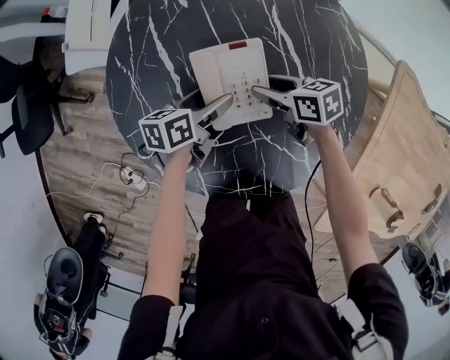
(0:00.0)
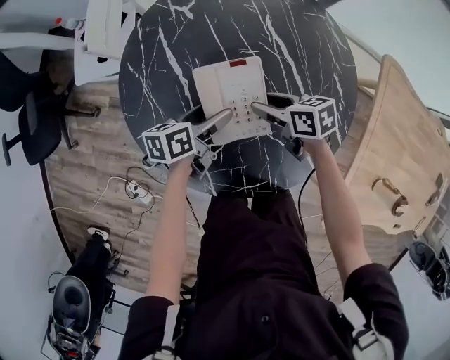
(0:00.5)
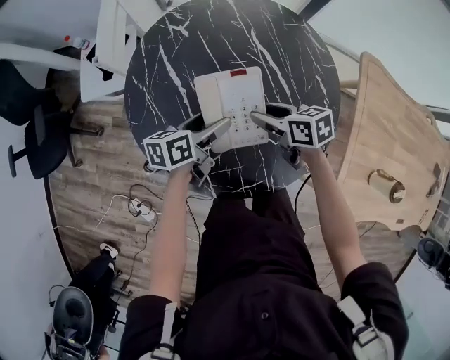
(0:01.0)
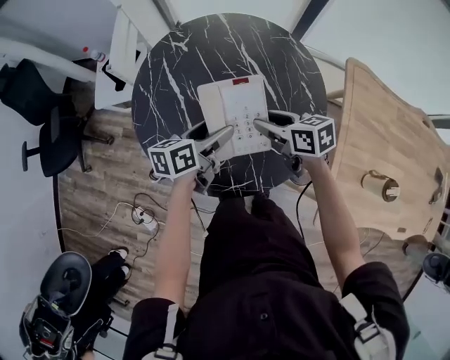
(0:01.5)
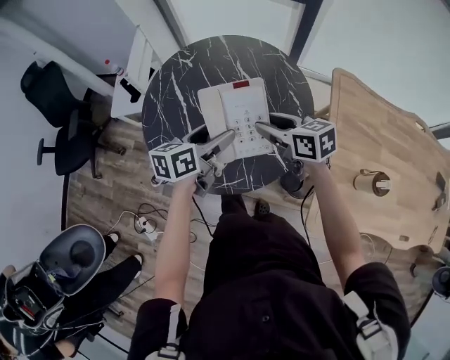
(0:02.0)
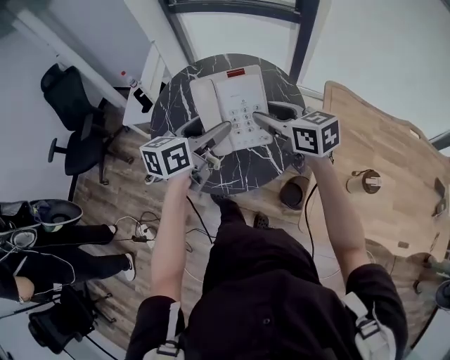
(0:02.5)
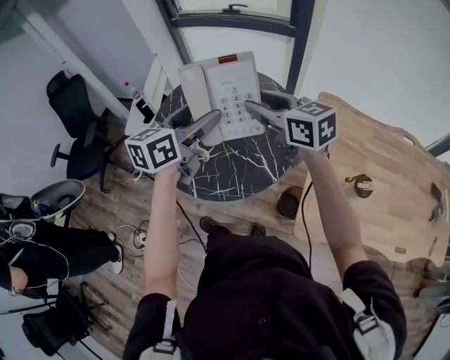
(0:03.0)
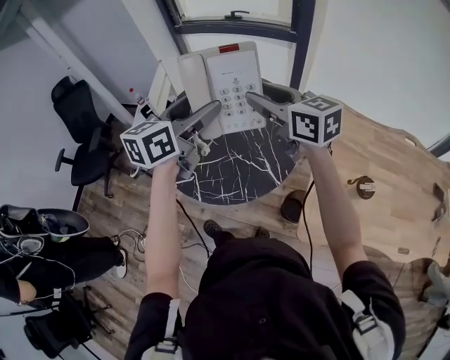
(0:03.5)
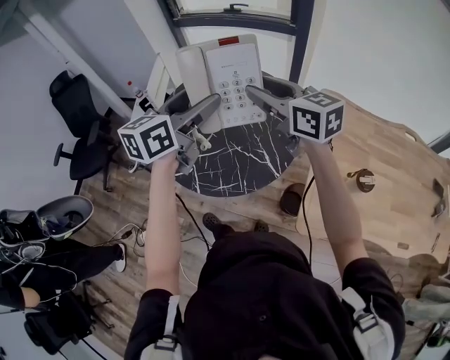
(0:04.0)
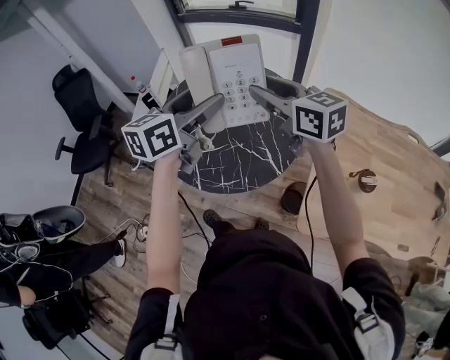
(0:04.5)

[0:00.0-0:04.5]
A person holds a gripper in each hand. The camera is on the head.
0:00.0 to 0:02.0: Both grippers travel together upward and backward, some 30 cm. The right gripper changes its angle by about 30 degrees. Meanwhile the left gripper turns by approximately 20 degrees.
0:02.0 to 0:04.5: Both grippers move upward, some 20 cm. The right gripper swivels about 30 degrees. Meanwhile the left gripper swivels approximately 20 degrees.

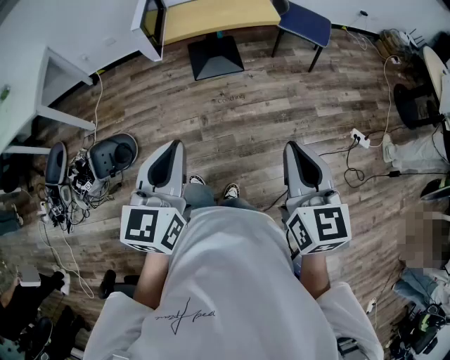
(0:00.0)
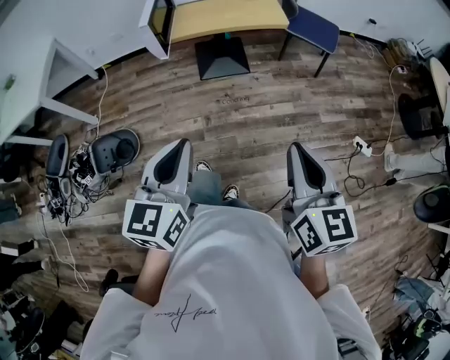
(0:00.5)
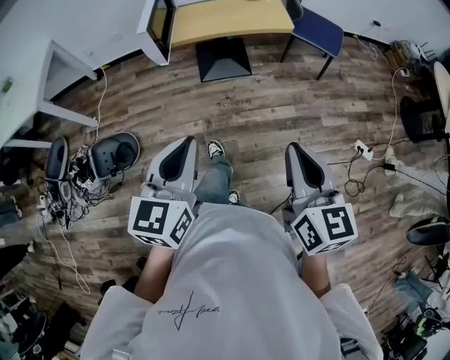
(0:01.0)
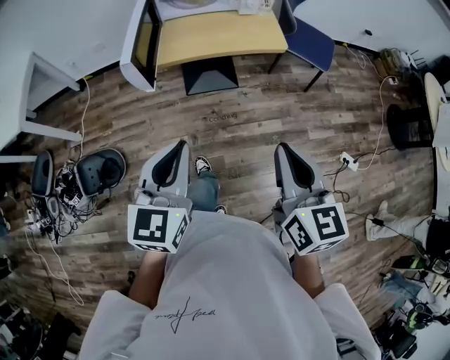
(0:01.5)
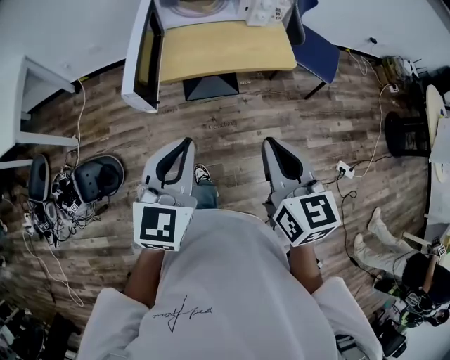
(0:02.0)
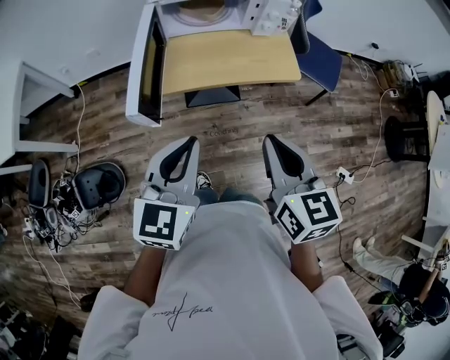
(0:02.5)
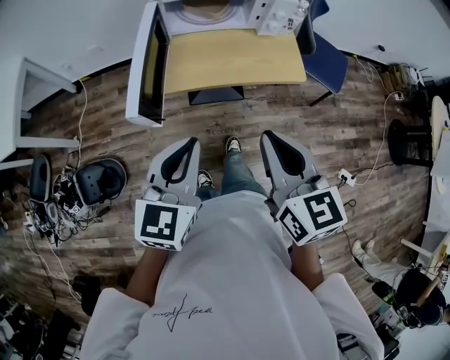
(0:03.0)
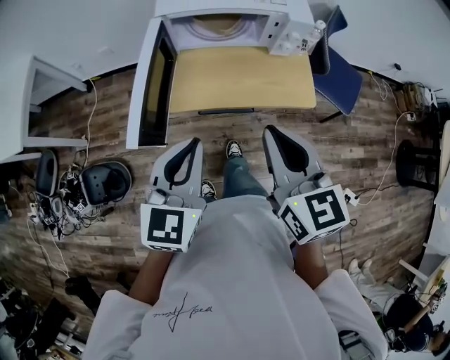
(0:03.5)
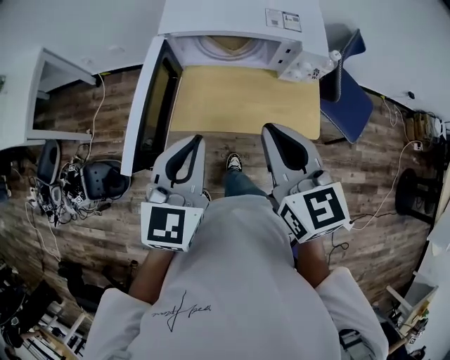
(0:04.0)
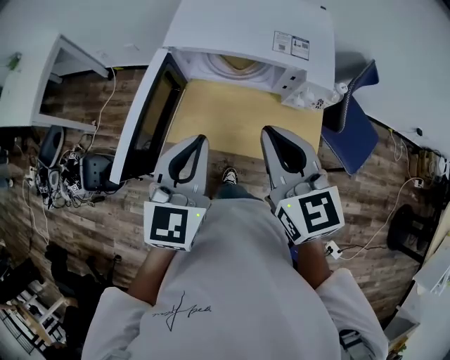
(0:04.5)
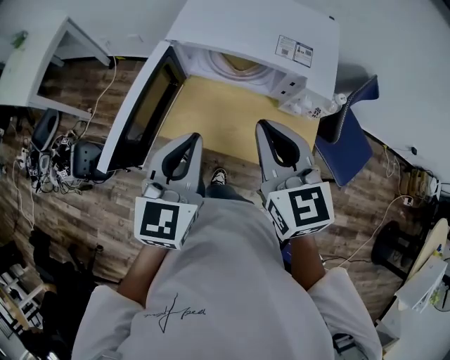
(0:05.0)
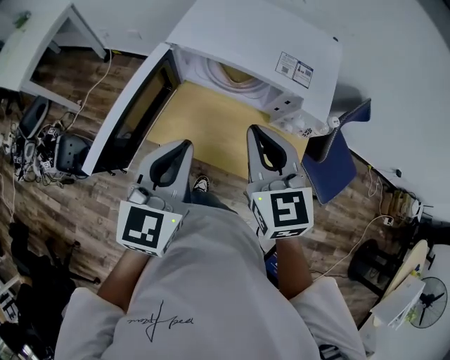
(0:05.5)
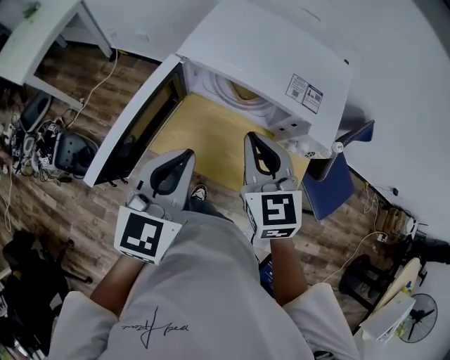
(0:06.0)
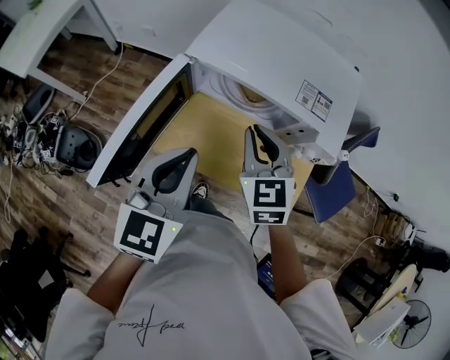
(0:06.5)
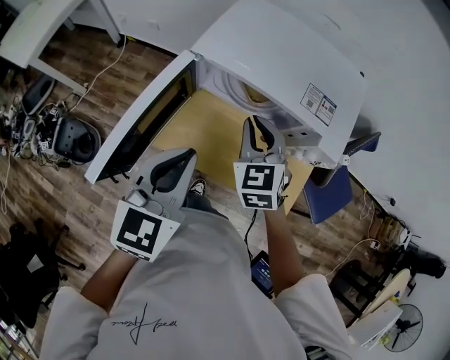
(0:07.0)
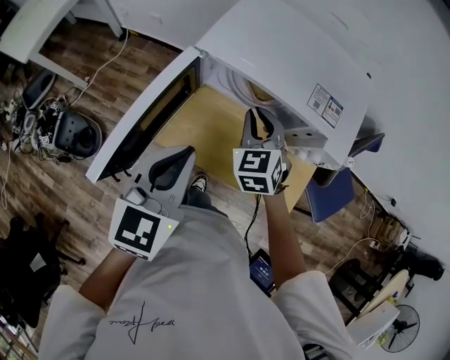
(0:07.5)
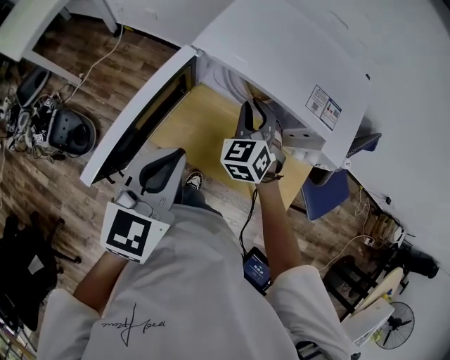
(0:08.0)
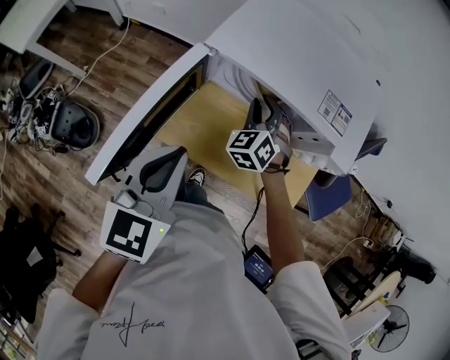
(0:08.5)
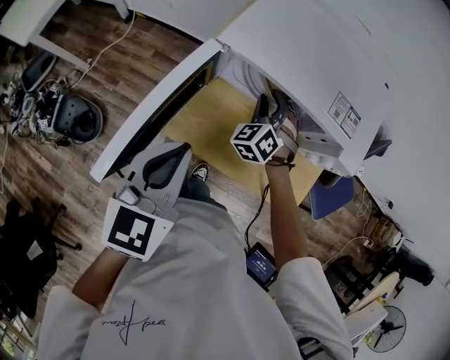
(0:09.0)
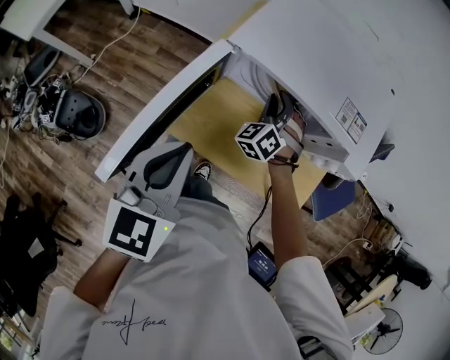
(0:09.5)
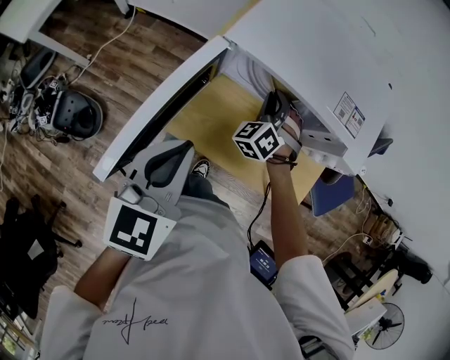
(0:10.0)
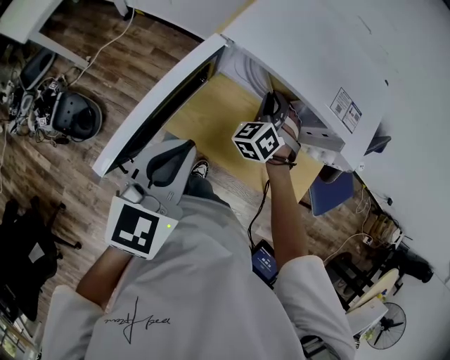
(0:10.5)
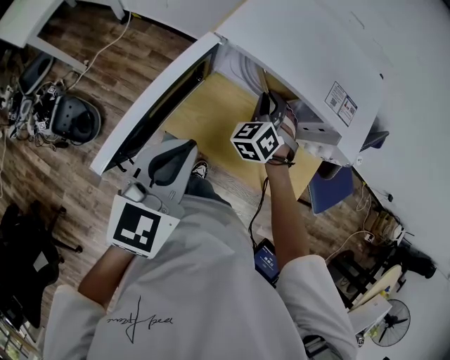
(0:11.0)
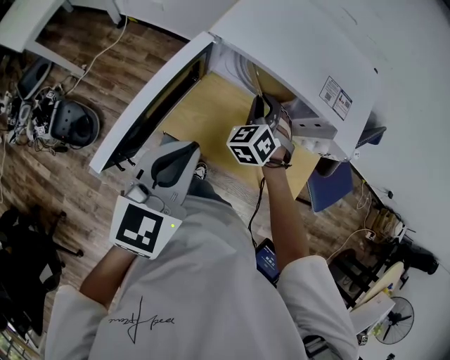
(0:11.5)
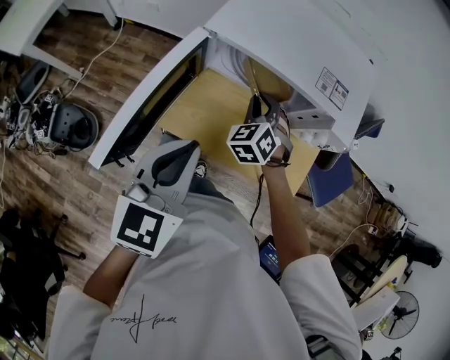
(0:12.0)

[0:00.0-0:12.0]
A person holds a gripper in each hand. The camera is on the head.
0:00.0 to 0:02.0: The grippers both shift forward by roughly 30 cm.
0:02.0 to 0:04.0: The two grippers go about 25 cm forward.
0:04.0 to 0:06.0: The left gripper is displaced forward by roughly 10 cm, while the right gripper heads forward and downward, covering roughly 15 cm, and rotates about 20 degrees.
0:06.0 to 0:08.0: The right gripper heads downward and forward, covering about 15 cm, and swivels roughly 30 degrees.
0:08.0 to 0:10.0: The right gripper shifts approximately 5 cm downward, and swivels approximately 20 degrees.
0:10.0 to 0:12.0: The right gripper shifts roughly 5 cm backward. The left gripper ends up about 5 cm from where it was.

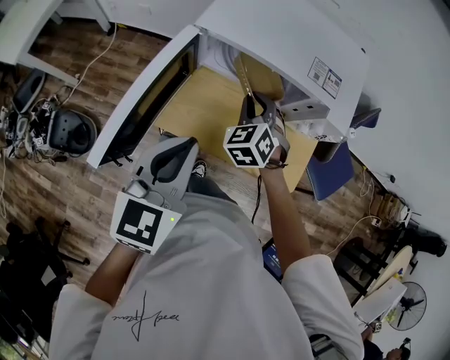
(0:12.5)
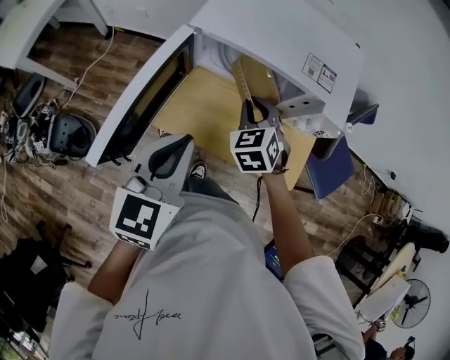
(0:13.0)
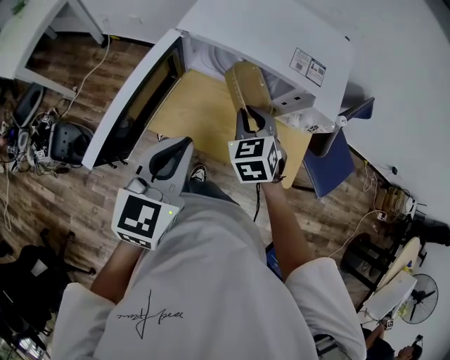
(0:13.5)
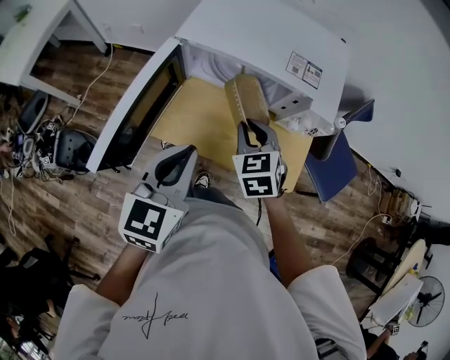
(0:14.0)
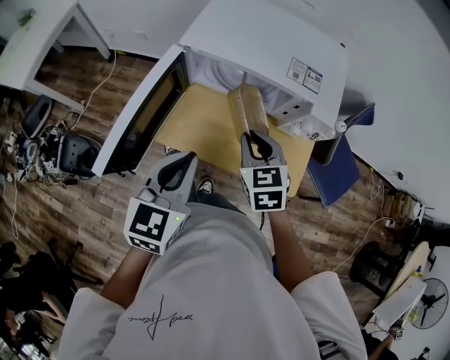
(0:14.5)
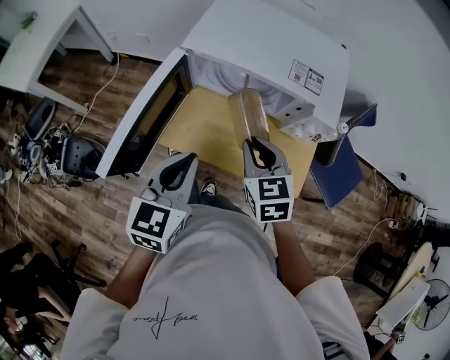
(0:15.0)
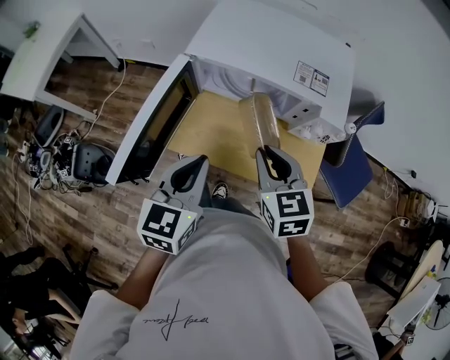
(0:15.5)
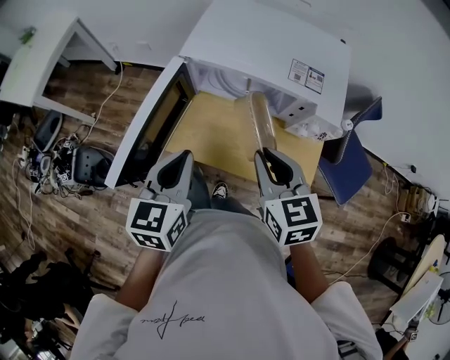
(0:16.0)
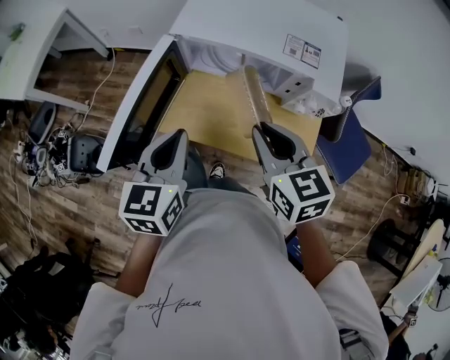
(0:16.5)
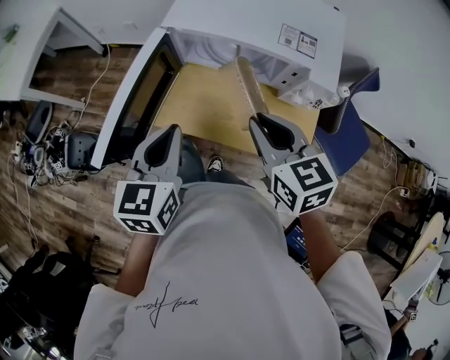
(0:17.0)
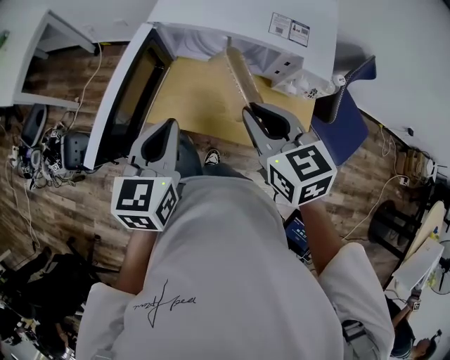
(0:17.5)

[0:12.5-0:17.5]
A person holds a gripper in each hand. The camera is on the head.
0:12.5 to 0:15.0: The right gripper goes approximately 10 cm backward and upward, and turns by roughly 30 degrees.
0:15.0 to 0:17.5: The right gripper is displaced upward by approximately 5 cm.

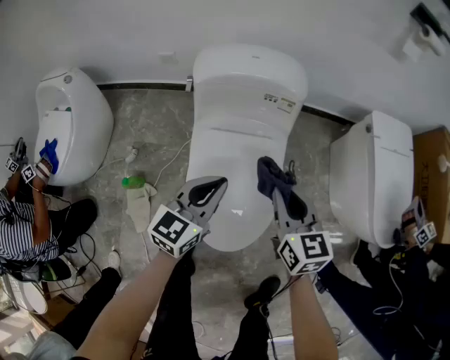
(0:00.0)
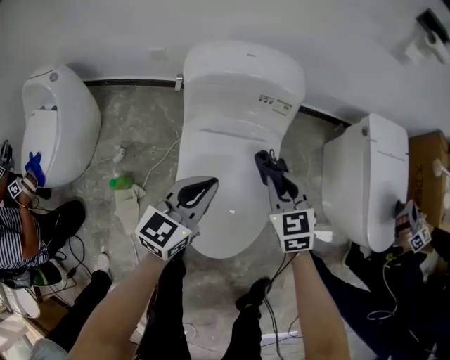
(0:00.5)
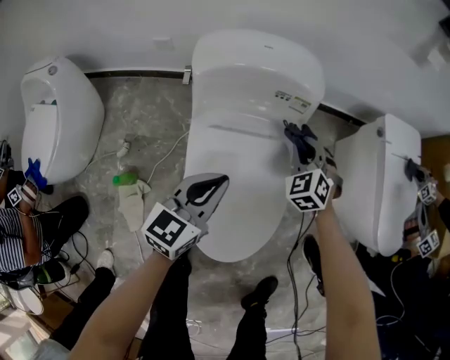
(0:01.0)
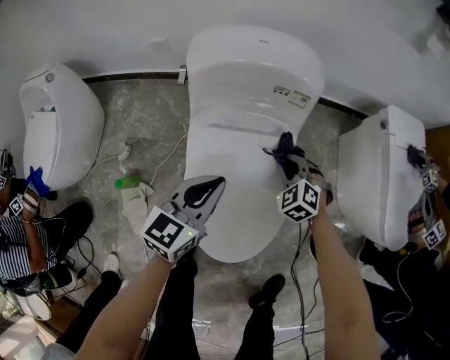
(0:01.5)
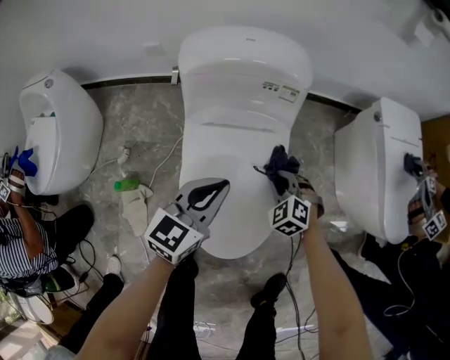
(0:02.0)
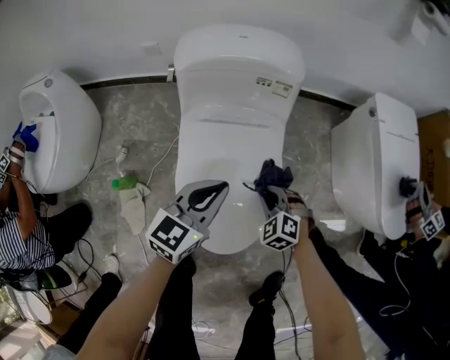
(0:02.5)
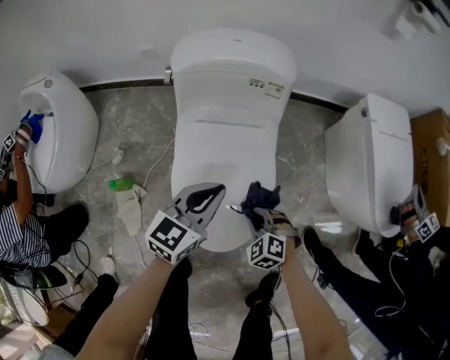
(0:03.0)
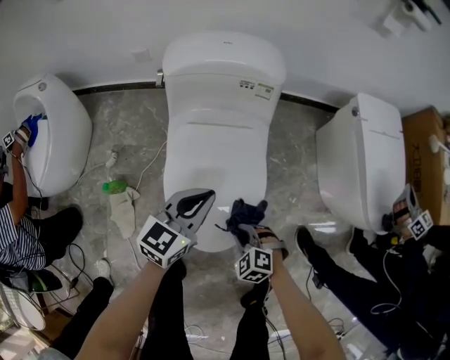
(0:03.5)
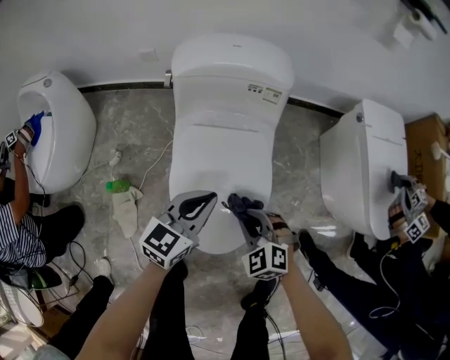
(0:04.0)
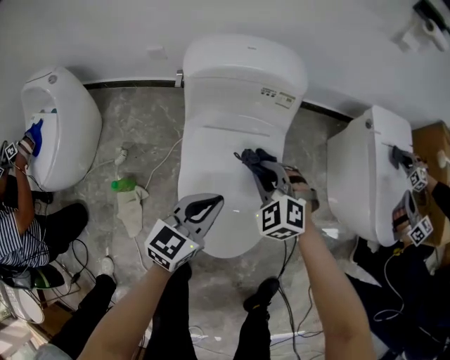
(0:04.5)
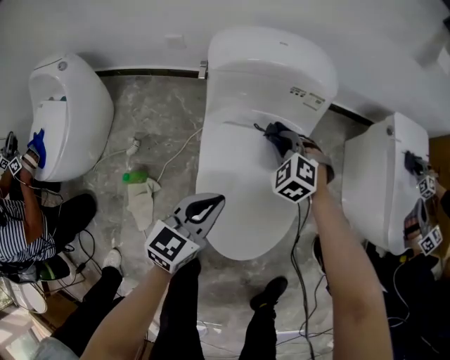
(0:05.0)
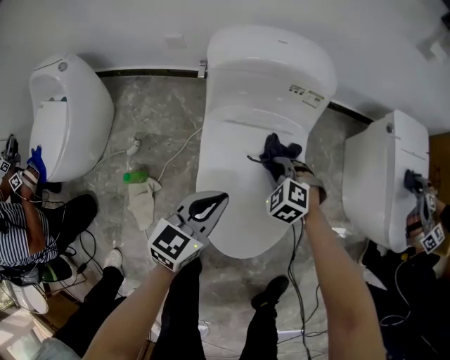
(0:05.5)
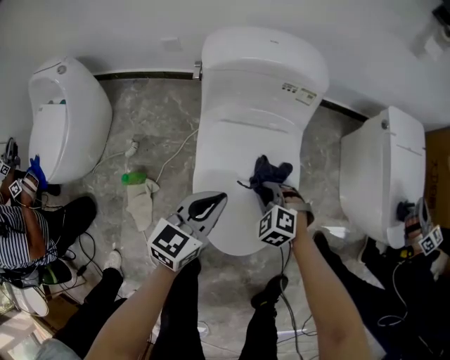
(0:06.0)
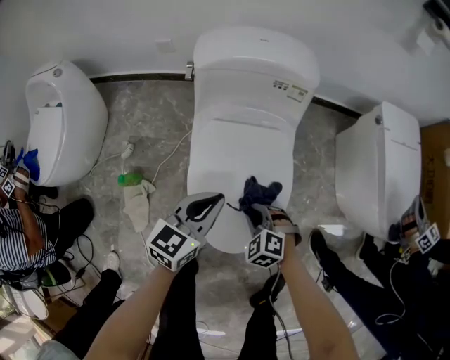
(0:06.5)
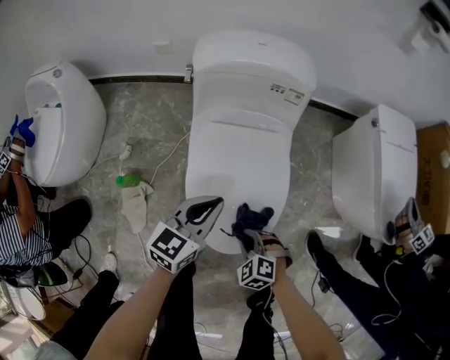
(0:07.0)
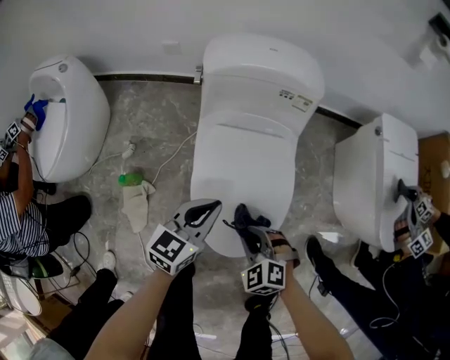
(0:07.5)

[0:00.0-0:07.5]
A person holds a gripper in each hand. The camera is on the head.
0:00.0 to 0:02.0: The right gripper moves downward, approximately 25 cm, and rolls counterclockwise, seen from behind, by some 50 degrees; the left gripper changes place by approximately 5 cm.
0:02.0 to 0:04.0: The left gripper shifts by approximately 5 cm, while the right gripper shifts some 15 cm backward and upward.
0:04.0 to 0:05.5: The right gripper moves forward and downward, about 15 cm. Meanwhile the left gripper heads to the left, covering approximately 5 cm.
0:05.5 to 0:07.5: The right gripper heads backward, covering about 20 cm.
